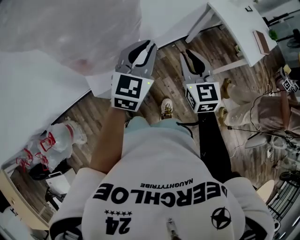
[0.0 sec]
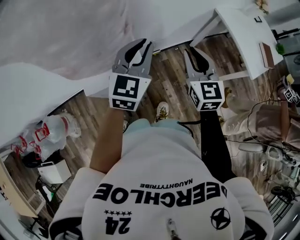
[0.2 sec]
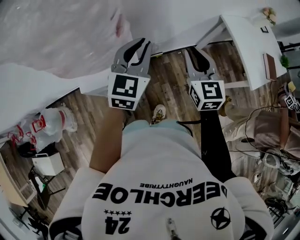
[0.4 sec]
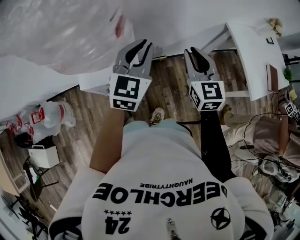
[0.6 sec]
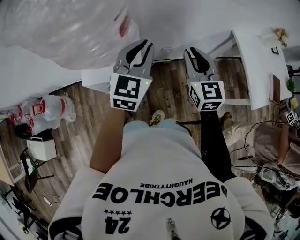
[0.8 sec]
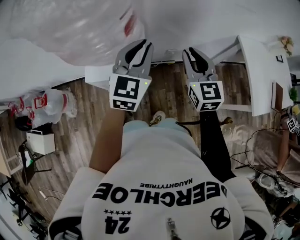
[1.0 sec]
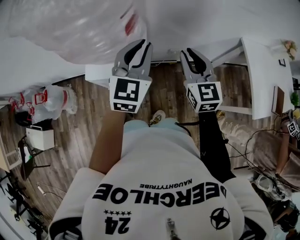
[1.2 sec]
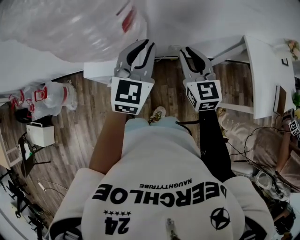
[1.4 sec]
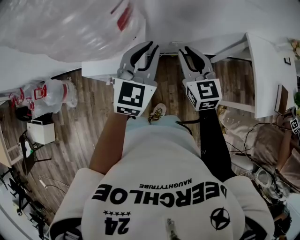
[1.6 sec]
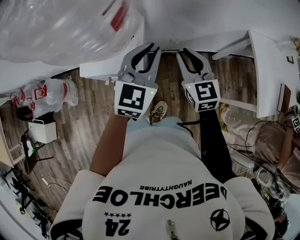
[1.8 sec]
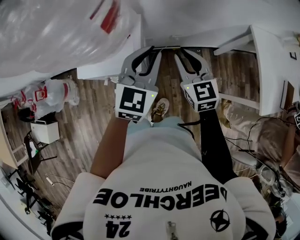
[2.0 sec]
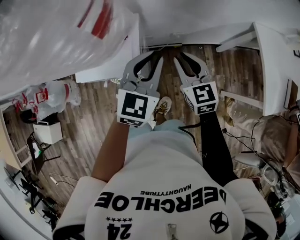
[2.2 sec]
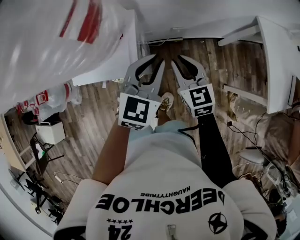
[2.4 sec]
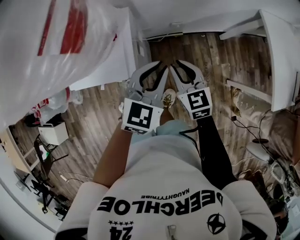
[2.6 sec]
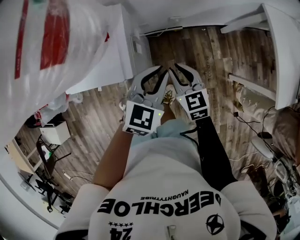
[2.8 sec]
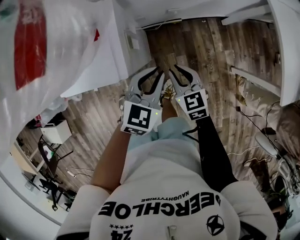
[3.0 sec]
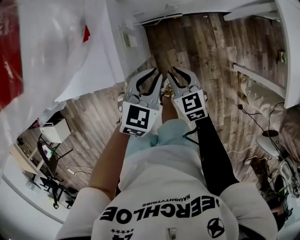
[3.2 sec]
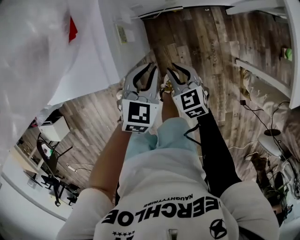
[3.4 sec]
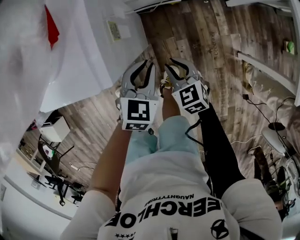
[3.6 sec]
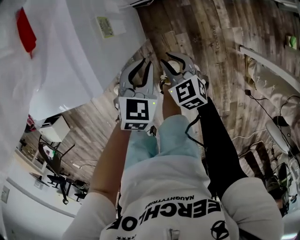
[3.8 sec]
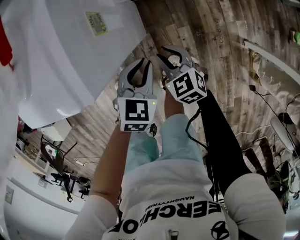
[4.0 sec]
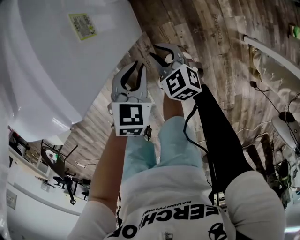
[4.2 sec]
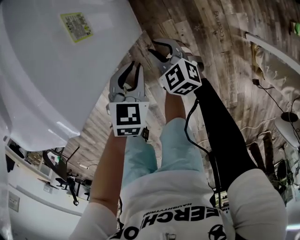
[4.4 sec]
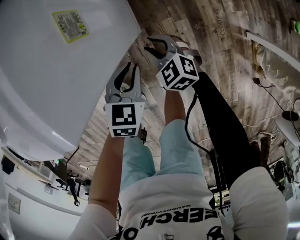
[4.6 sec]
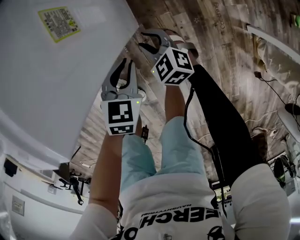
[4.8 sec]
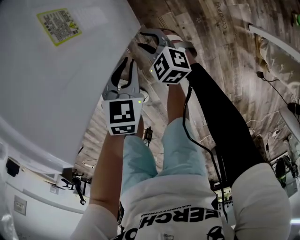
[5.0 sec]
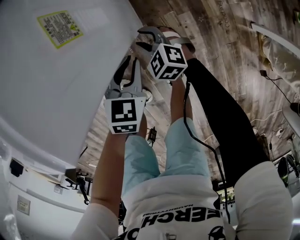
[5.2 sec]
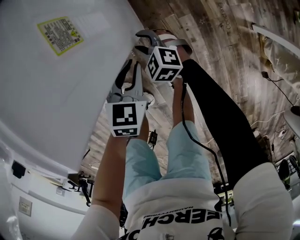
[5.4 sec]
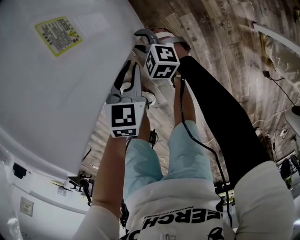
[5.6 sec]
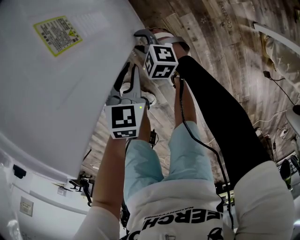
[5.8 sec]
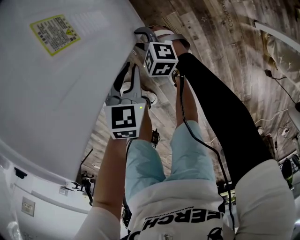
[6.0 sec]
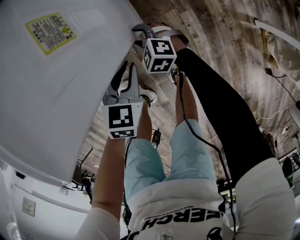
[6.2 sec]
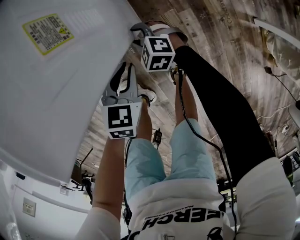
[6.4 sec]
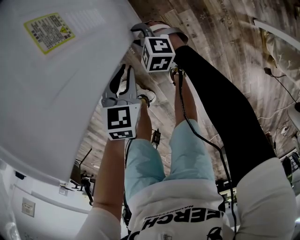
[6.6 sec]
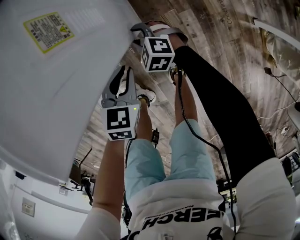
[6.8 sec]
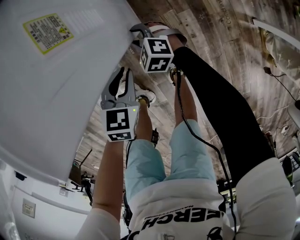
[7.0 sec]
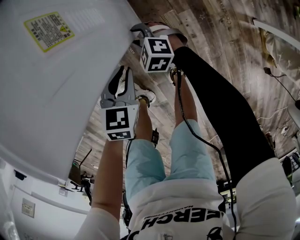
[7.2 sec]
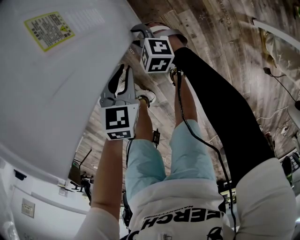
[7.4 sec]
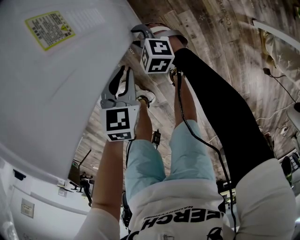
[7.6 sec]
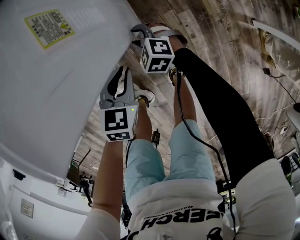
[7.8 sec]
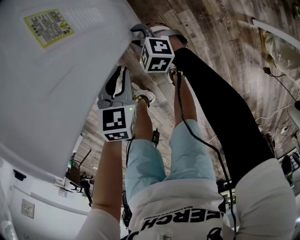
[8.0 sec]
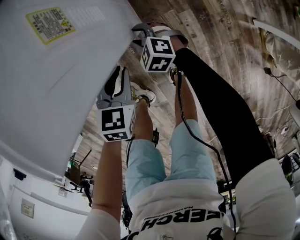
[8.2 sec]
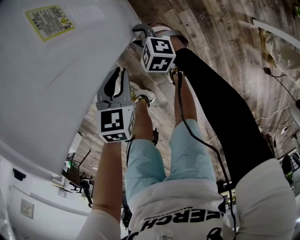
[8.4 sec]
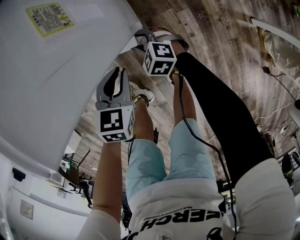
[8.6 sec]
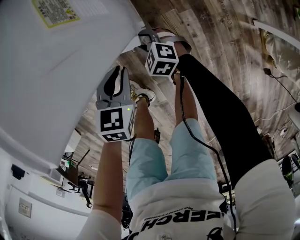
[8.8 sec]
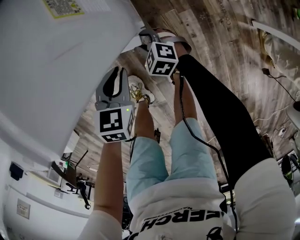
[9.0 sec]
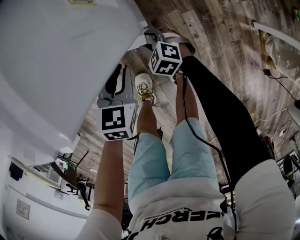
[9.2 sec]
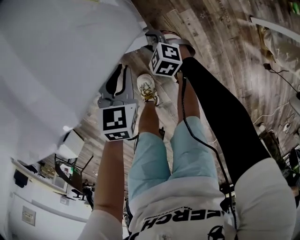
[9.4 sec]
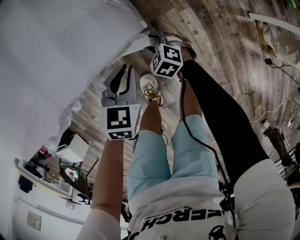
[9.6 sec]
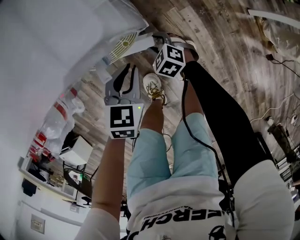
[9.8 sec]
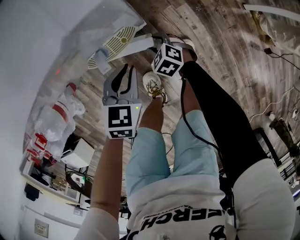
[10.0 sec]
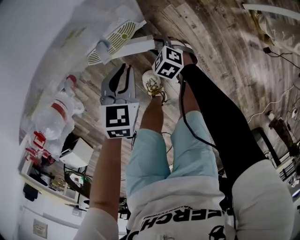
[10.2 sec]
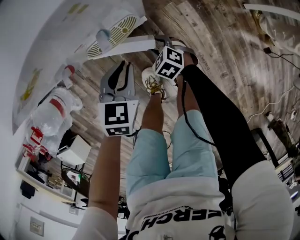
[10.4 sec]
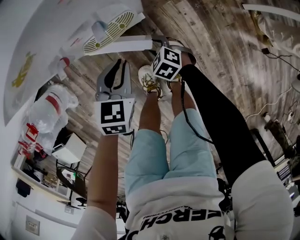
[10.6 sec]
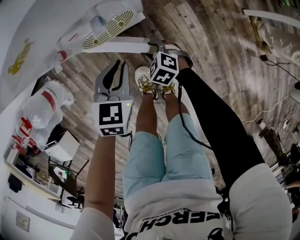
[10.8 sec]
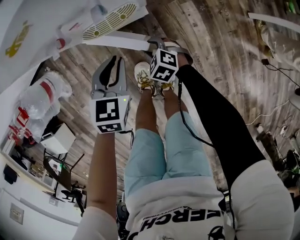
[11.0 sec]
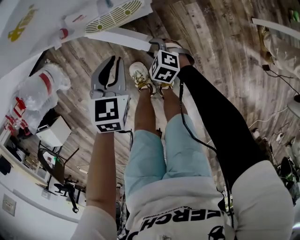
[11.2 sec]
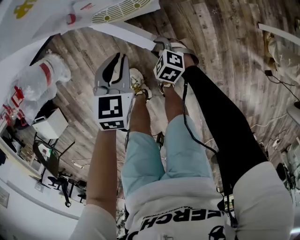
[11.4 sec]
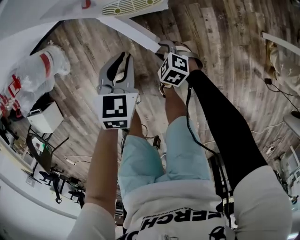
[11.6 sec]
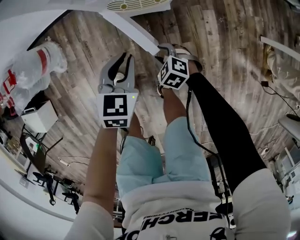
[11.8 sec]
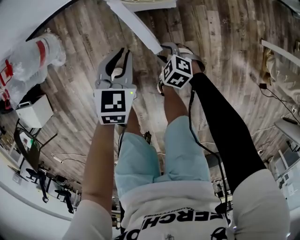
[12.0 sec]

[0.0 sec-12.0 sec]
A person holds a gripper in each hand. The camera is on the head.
0.0 sec to 1.6 sec: The left gripper swivels roughly 30 degrees; the right gripper moves about 10 cm, and turns by roughly 30 degrees.
1.6 sec to 3.0 sec: The grippers both shift downward by about 25 cm. The right gripper turns by approximately 30 degrees, while the left gripper swivels roughly 30 degrees.
3.0 sec to 4.4 sec: The grippers both shift downward by some 25 cm. The right gripper changes its angle by roughly 20 degrees.
4.4 sec to 6.0 sec: The left gripper shifts by roughly 5 cm; the right gripper is displaced downward and to the left by roughly 15 cm.
6.0 sec to 7.6 sec: The grippers make only small movements.
7.6 sec to 9.0 sec: The grippers make only small movements.
9.0 sec to 10.4 sec: The left gripper changes place by roughly 5 cm. The right gripper goes some 10 cm backward, and turns by some 20 degrees.
10.4 sec to 12.0 sec: The left gripper shifts by about 15 cm, and turns by roughly 20 degrees; the right gripper moves some 15 cm, and turns by roughly 30 degrees.

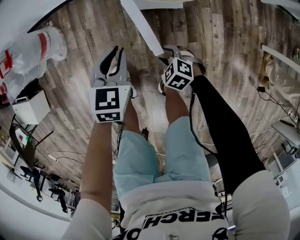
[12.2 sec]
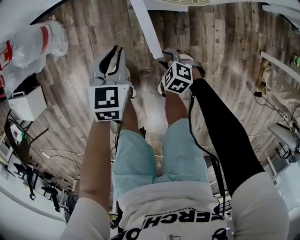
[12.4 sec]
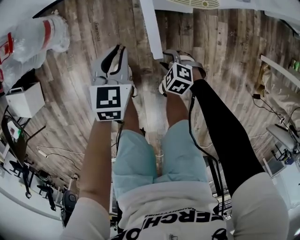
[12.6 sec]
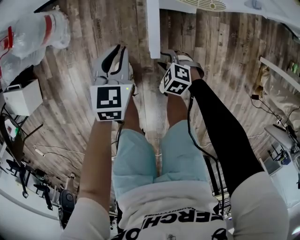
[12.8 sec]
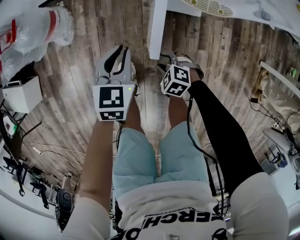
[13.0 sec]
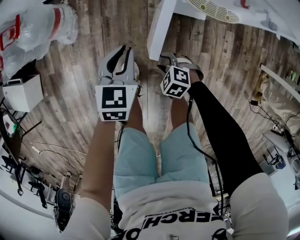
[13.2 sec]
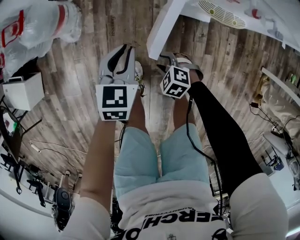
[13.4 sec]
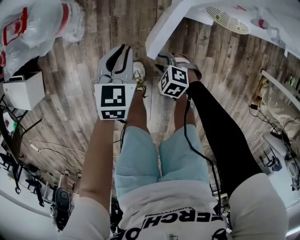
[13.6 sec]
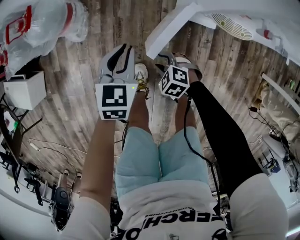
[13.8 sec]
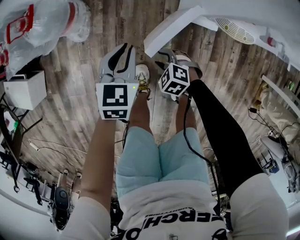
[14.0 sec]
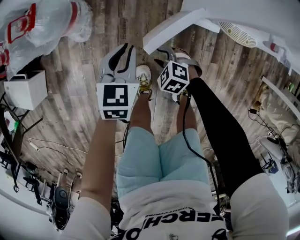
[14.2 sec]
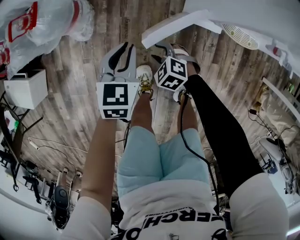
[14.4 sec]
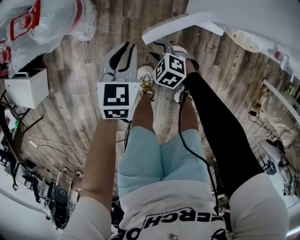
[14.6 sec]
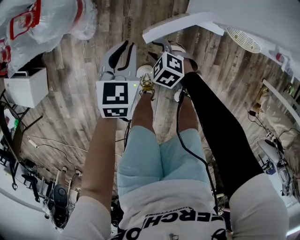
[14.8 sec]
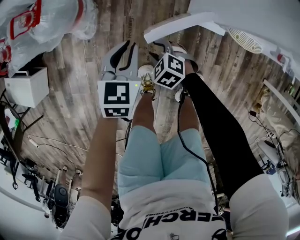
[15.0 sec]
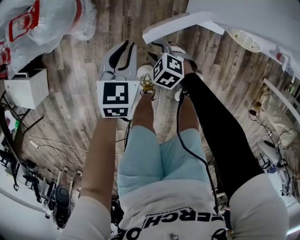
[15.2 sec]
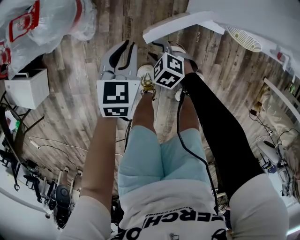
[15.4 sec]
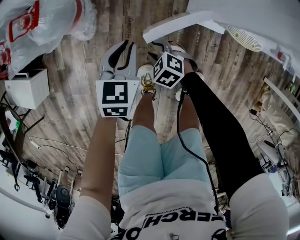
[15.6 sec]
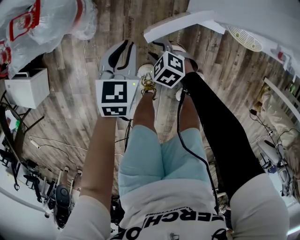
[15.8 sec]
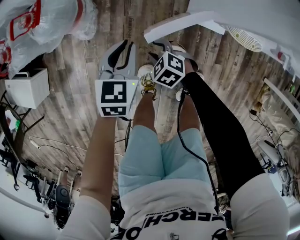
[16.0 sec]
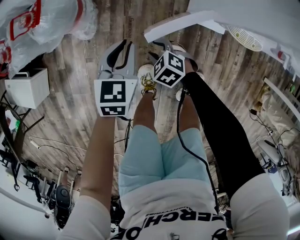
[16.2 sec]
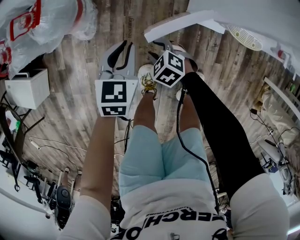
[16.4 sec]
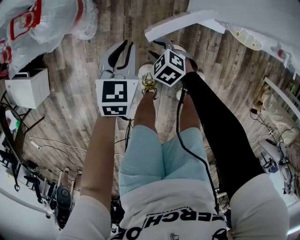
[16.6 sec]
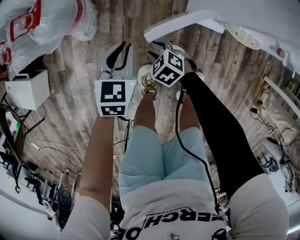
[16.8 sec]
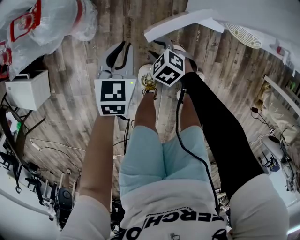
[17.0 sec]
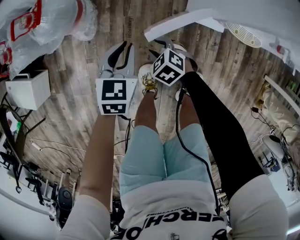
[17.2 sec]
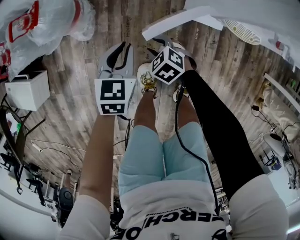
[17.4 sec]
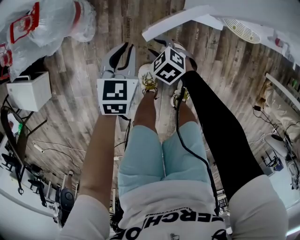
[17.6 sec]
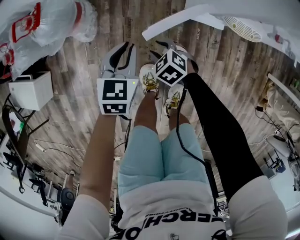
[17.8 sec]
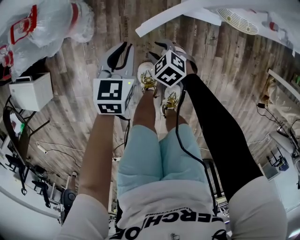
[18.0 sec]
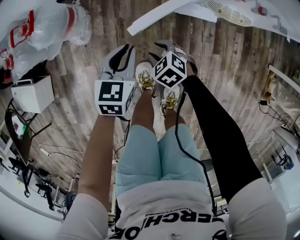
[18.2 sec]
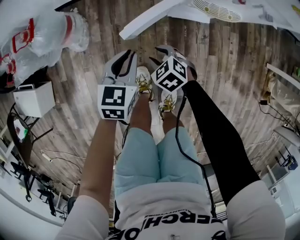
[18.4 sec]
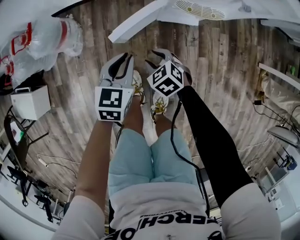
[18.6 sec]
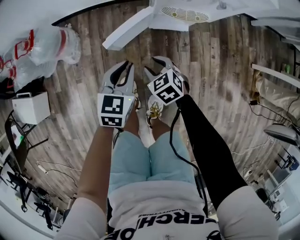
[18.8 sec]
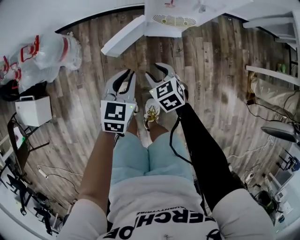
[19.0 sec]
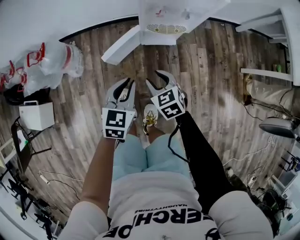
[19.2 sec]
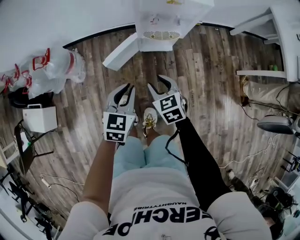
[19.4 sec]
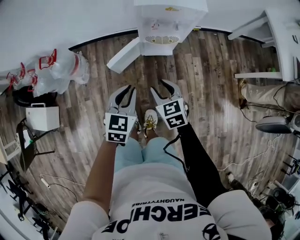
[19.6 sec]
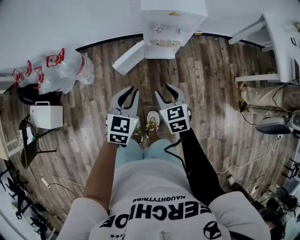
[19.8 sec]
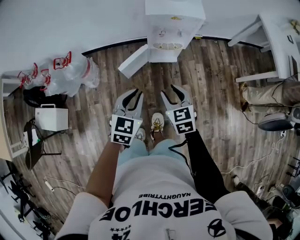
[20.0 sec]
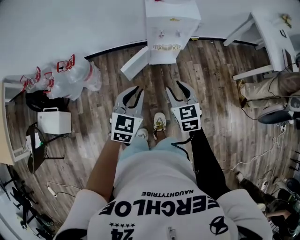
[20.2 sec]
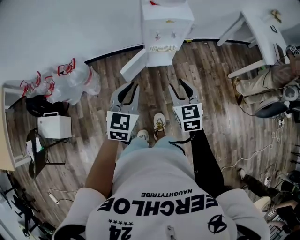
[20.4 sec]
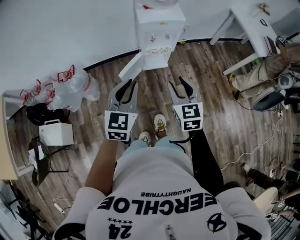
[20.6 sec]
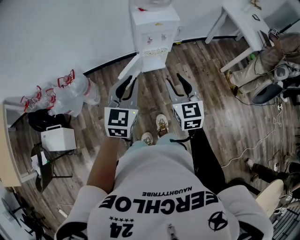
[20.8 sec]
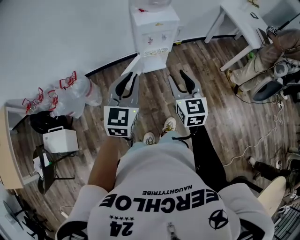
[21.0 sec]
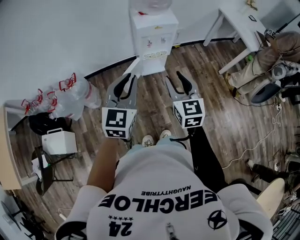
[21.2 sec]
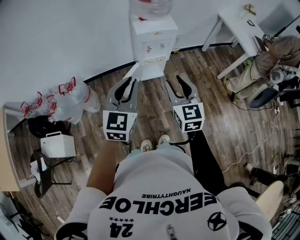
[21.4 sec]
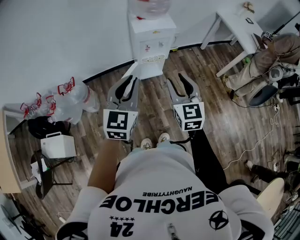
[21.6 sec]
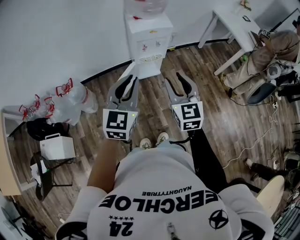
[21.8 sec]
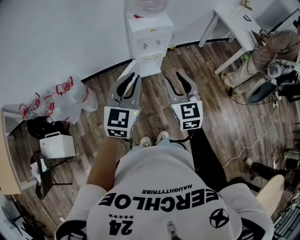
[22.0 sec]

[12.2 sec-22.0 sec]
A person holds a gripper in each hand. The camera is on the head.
12.2 sec to 13.6 sec: Both grippers travel together to the left and forward, approximately 20 cm.
13.6 sec to 15.0 sec: The left gripper moves forward, roughly 5 cm, while the right gripper heads forward and to the left, covering roughly 15 cm.
15.0 sec to 16.4 sec: Both grippers stay about where they are.
16.4 sec to 17.8 sec: The grippers move only a little.
17.8 sec to 19.2 sec: The right gripper is displaced upward, to the right and backward by about 35 cm, and turns by some 30 degrees; the left gripper travels to the right, backward and upward by approximately 30 cm.
19.2 sec to 20.6 sec: Both grippers travel together upward and backward, approximately 35 cm. The right gripper turns by roughly 40 degrees; the left gripper turns by approximately 20 degrees.
20.6 sec to 22.0 sec: Both grippers move upward, about 10 cm.

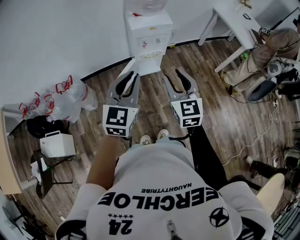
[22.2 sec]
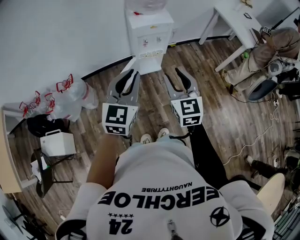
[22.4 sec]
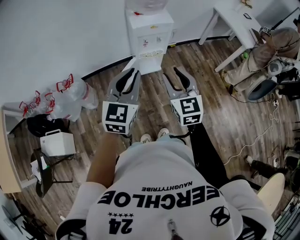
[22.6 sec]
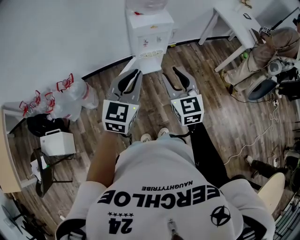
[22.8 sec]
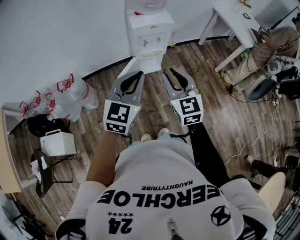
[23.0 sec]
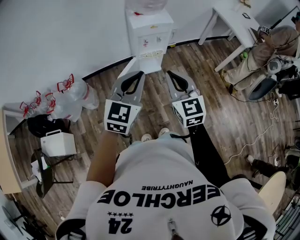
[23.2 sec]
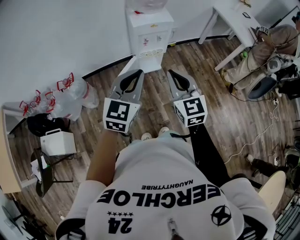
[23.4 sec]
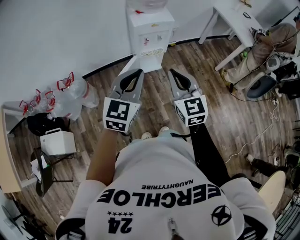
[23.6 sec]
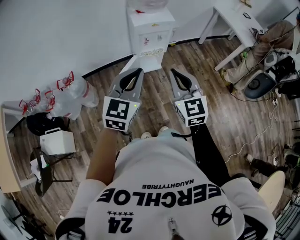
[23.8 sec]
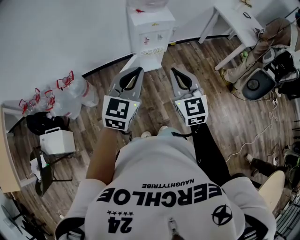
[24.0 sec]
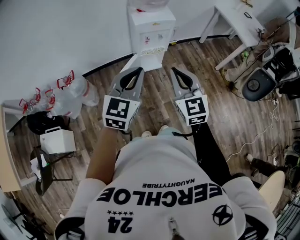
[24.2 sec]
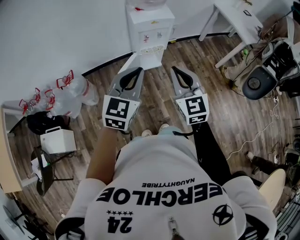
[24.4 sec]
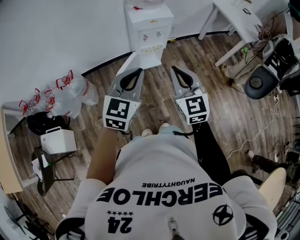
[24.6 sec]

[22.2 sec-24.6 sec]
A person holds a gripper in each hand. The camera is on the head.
22.2 sec to 23.4 sec: The right gripper closes its fingers.
23.4 sec to 24.6 sec: Both grippers stay put.
